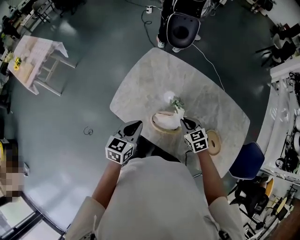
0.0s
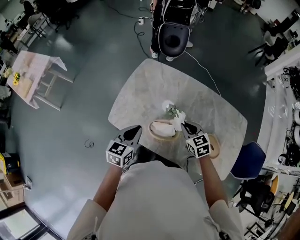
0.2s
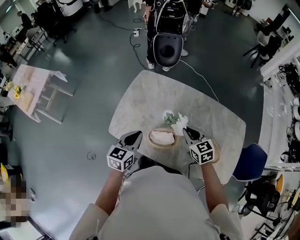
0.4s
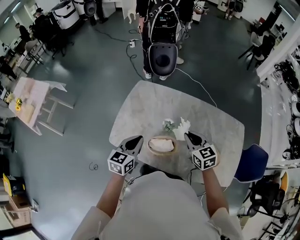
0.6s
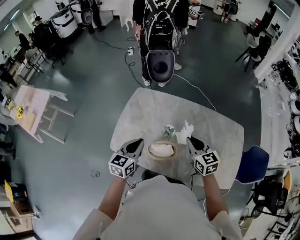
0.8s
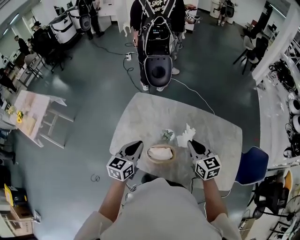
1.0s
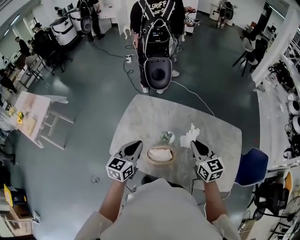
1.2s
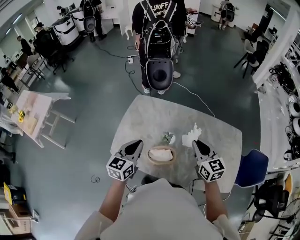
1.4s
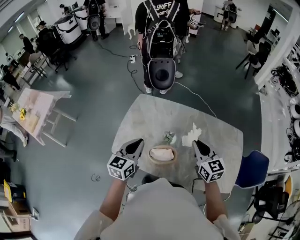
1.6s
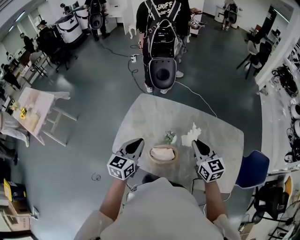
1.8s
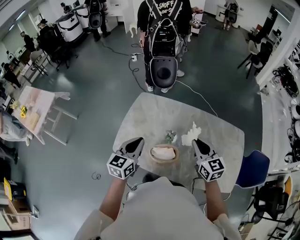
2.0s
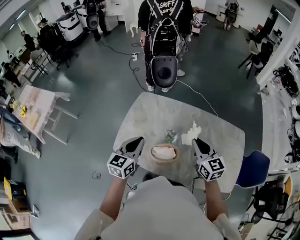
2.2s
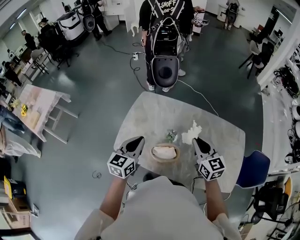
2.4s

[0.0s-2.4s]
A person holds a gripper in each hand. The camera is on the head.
0.0s to 1.2s: The left gripper shifts approximately 10 cm upward and to the right. The right gripper heads upward and to the right, covering approximately 25 cm, and changes its angle by some 40 degrees.
1.2s to 2.4s: The grippers move only a little.

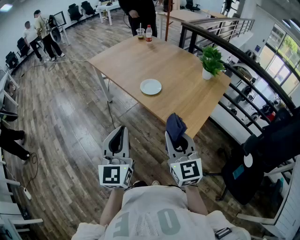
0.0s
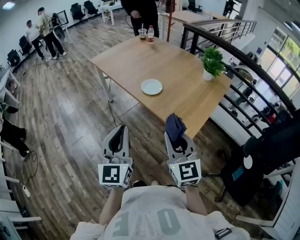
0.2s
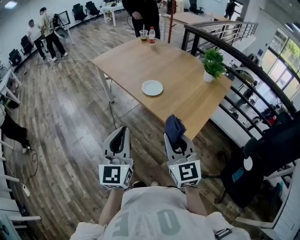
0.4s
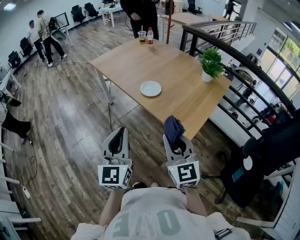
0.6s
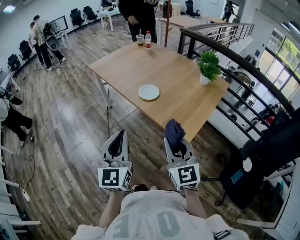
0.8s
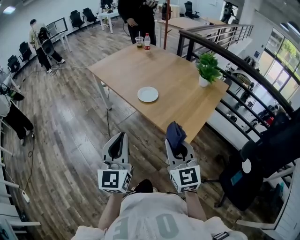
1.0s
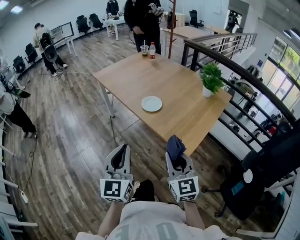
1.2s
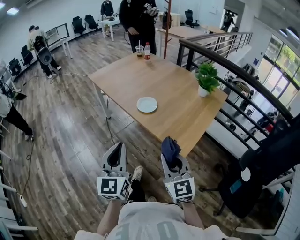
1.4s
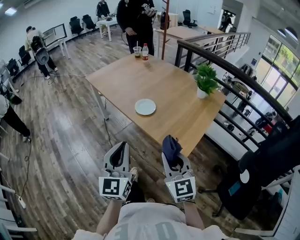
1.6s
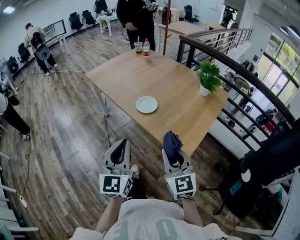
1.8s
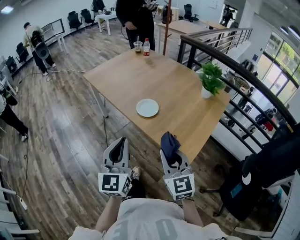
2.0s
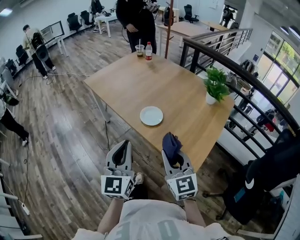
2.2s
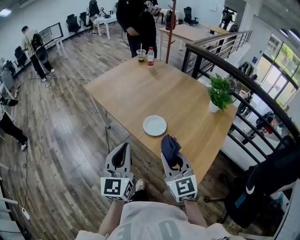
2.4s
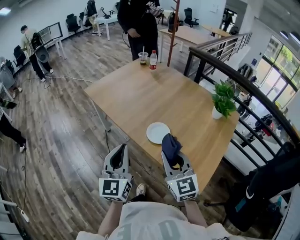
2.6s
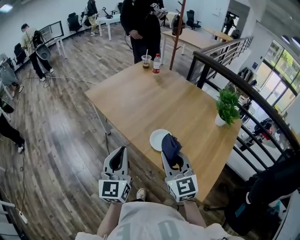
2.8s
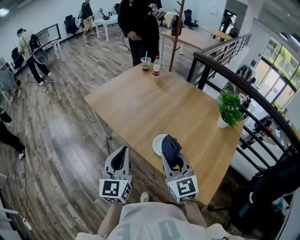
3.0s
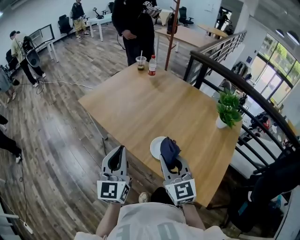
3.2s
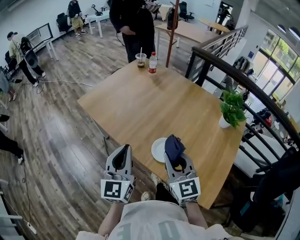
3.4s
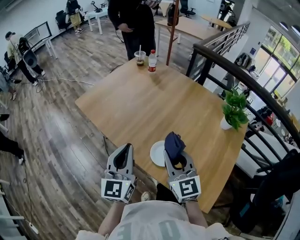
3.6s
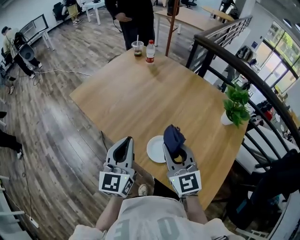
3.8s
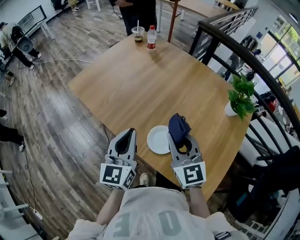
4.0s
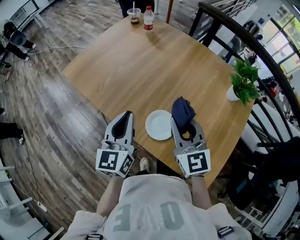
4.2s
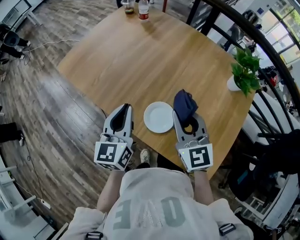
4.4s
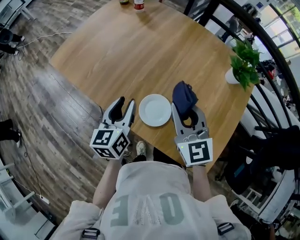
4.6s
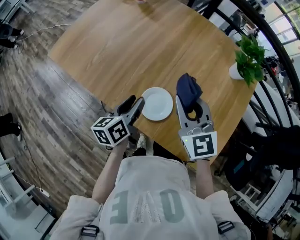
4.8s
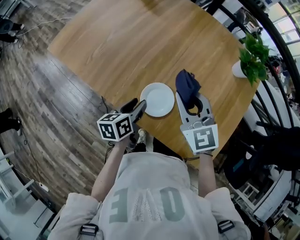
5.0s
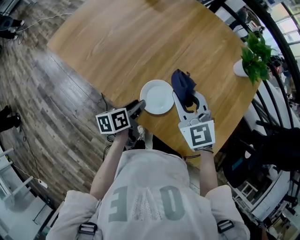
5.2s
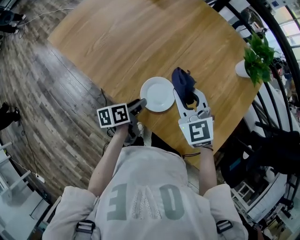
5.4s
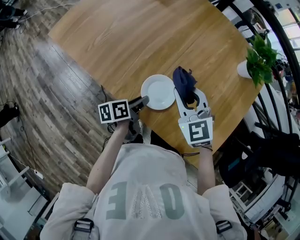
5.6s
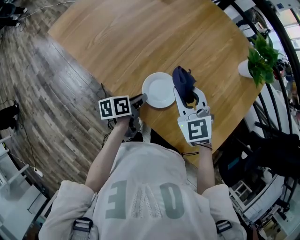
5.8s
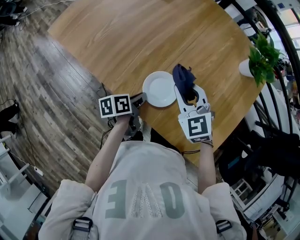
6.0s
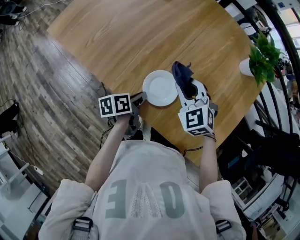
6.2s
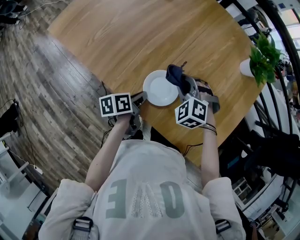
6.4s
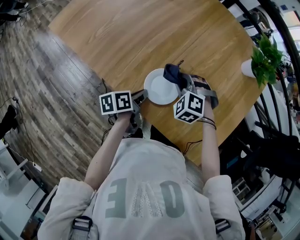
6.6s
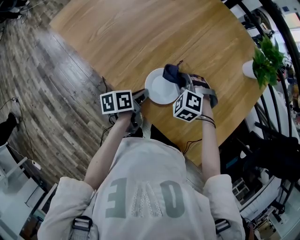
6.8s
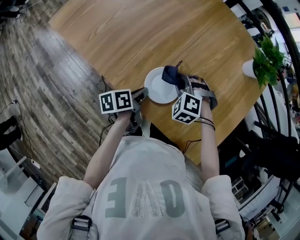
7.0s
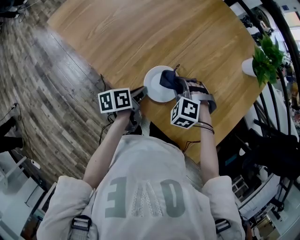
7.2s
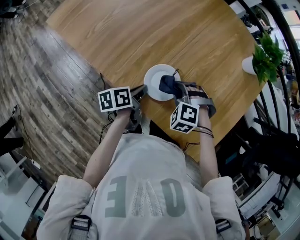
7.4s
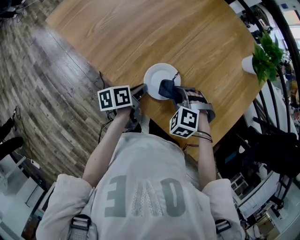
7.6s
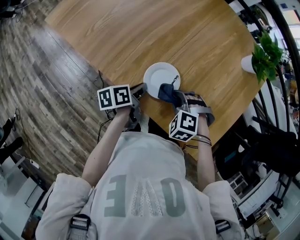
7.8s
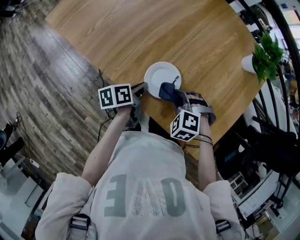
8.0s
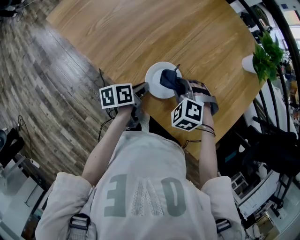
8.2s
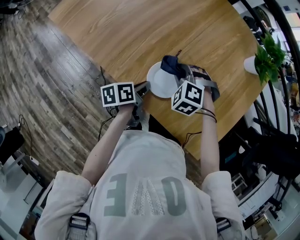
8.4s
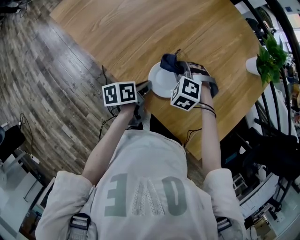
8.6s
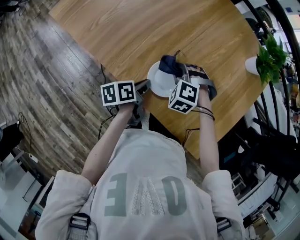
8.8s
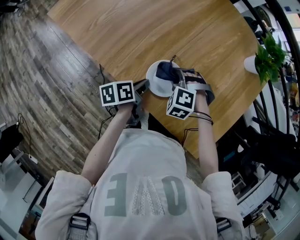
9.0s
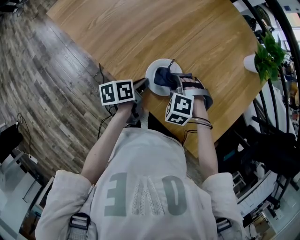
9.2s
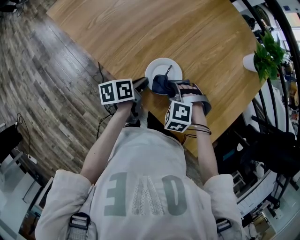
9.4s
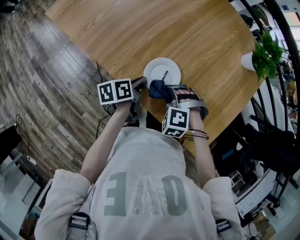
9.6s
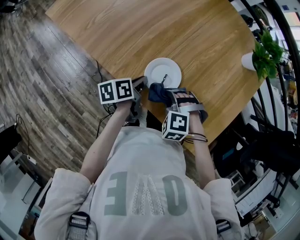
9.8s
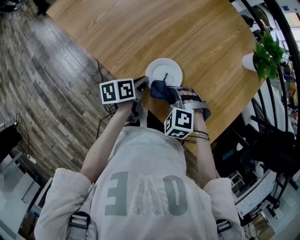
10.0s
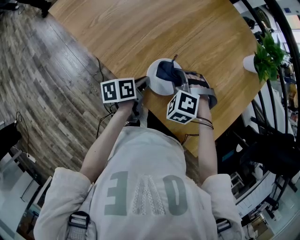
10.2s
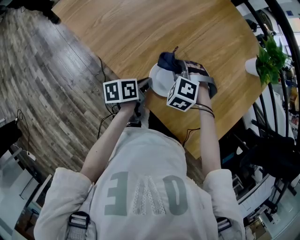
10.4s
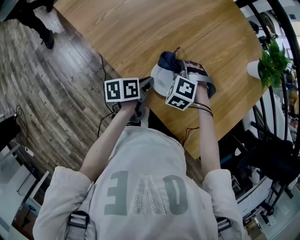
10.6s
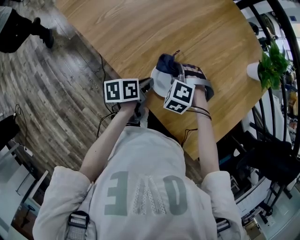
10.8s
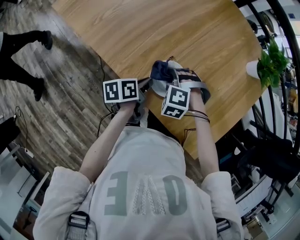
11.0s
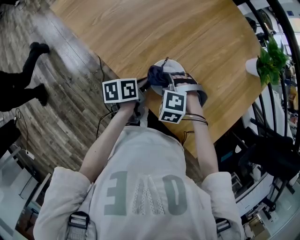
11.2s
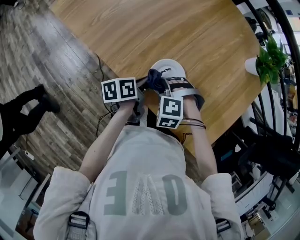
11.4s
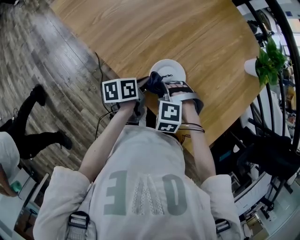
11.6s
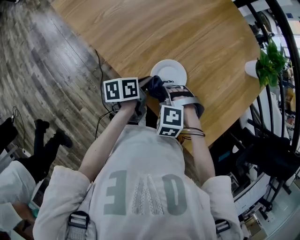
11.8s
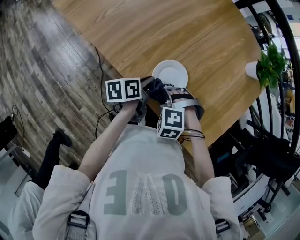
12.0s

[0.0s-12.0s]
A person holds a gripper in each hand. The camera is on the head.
0.0s to 1.6s: The grippers move only a little.
1.6s to 3.0s: Both grippers move forward, roughly 30 cm.
3.0s to 4.4s: The right gripper is displaced forward and to the right by approximately 15 cm. Meanwhile the left gripper travels forward, to the right and downward by some 15 cm.
4.4s to 6.0s: The right gripper heads downward, covering some 10 cm, and changes its angle by approximately 20 degrees, while the left gripper heads downward, covering roughly 25 cm, swivels roughly 60 degrees, and opens, then closes once more.
6.0s to 7.6s: The right gripper shifts about 15 cm downward and backward, and tips its fingers downward by approximately 40 degrees.
9.0s to 10.4s: The right gripper reaches roughly 10 cm backward, then returns.
10.4s to 12.0s: The right gripper shifts approximately 15 cm backward.

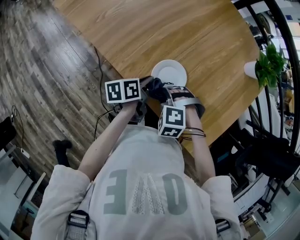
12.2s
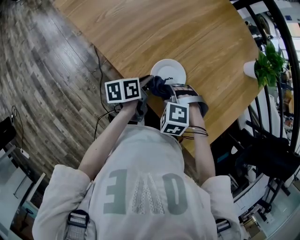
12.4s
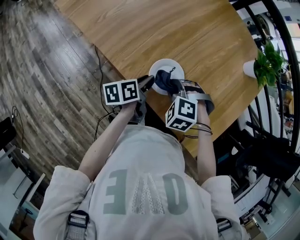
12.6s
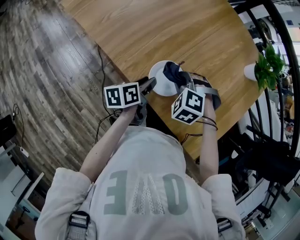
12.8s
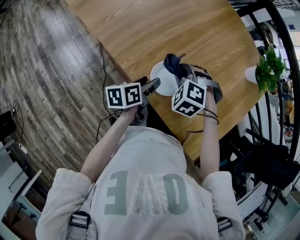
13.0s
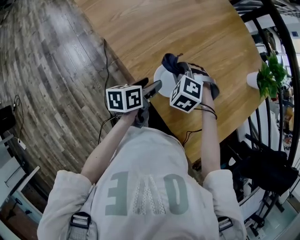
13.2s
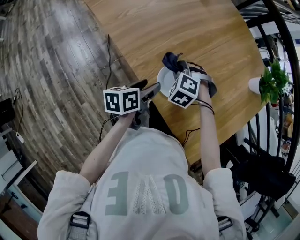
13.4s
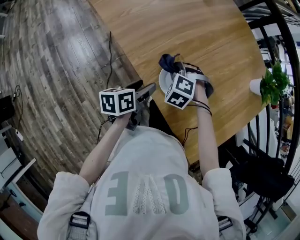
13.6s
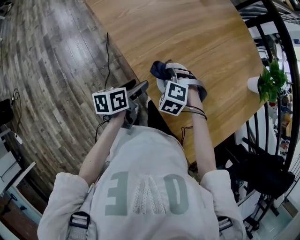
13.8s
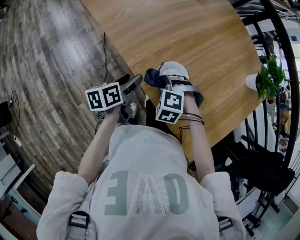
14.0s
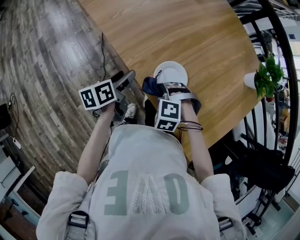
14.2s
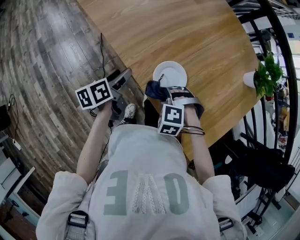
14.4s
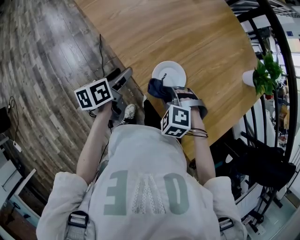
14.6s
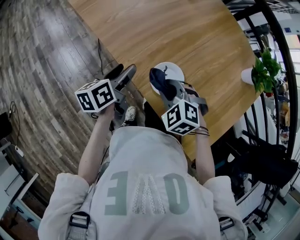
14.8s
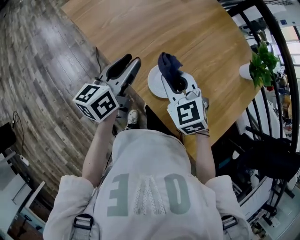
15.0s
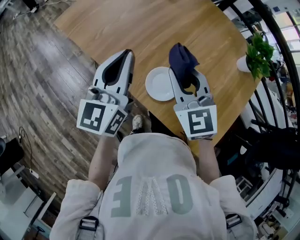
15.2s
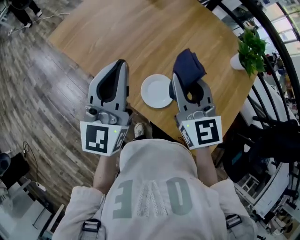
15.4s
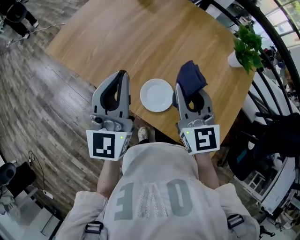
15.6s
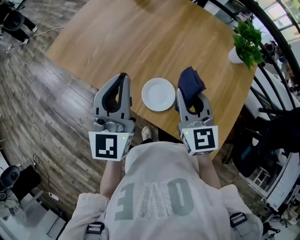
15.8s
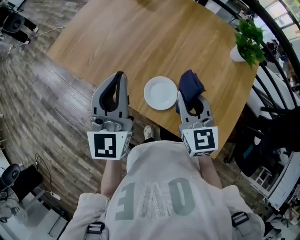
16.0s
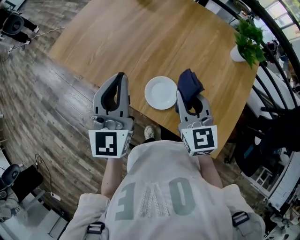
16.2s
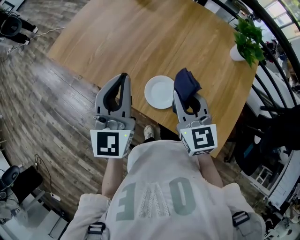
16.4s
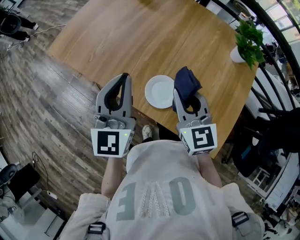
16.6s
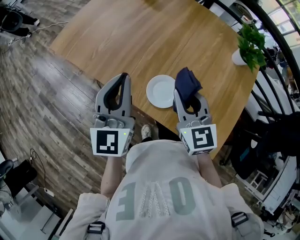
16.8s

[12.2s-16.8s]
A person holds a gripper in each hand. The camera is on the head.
12.2s to 13.8s: The right gripper heads forward, covering some 5 cm, while the left gripper shifts about 10 cm to the left and backward, and opens its fingers.
13.8s to 15.2s: Both grippers move upward, roughly 25 cm. The left gripper points its fingers approximately 40 degrees further upward, and closes. The right gripper points its fingers some 50 degrees further upward.
15.2s to 16.8s: The right gripper moves roughly 5 cm.

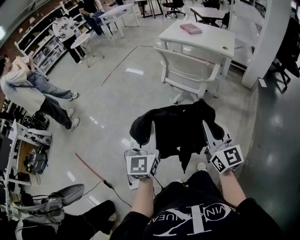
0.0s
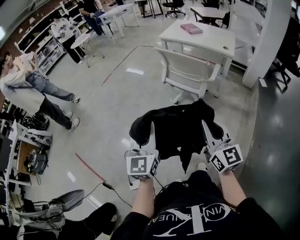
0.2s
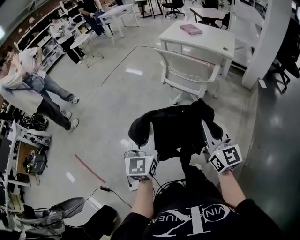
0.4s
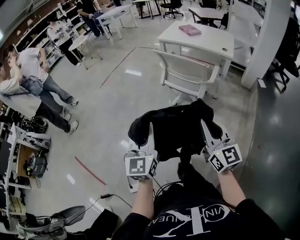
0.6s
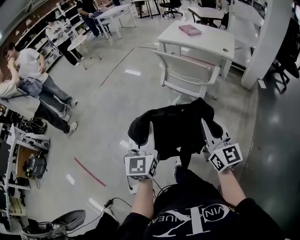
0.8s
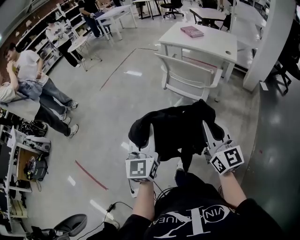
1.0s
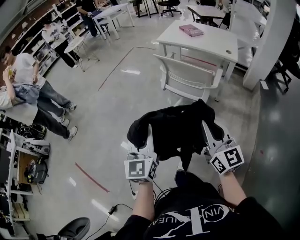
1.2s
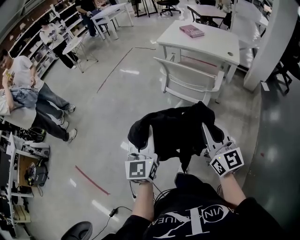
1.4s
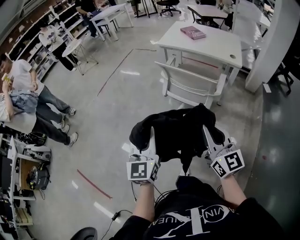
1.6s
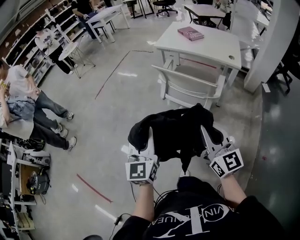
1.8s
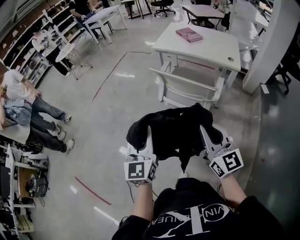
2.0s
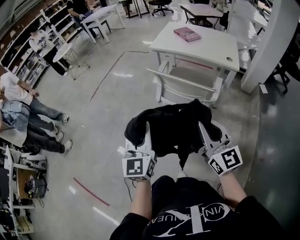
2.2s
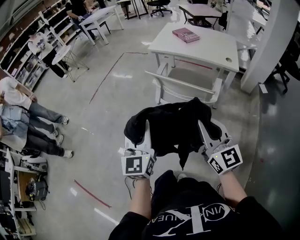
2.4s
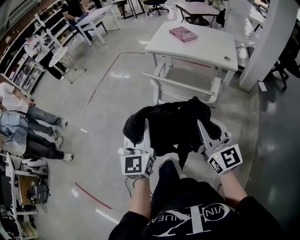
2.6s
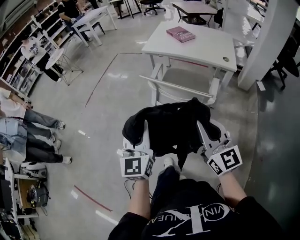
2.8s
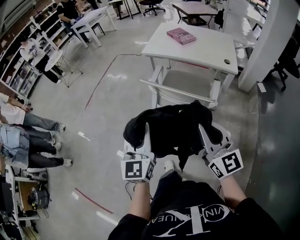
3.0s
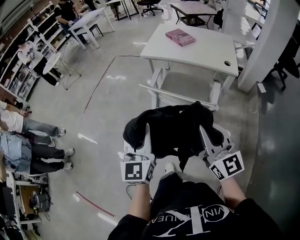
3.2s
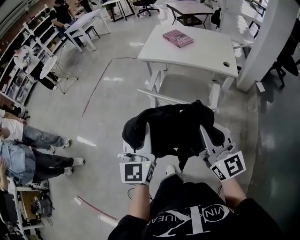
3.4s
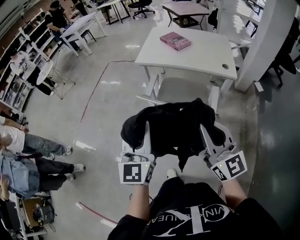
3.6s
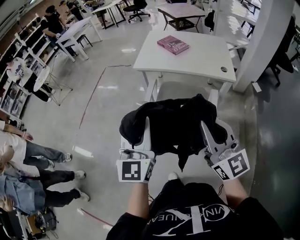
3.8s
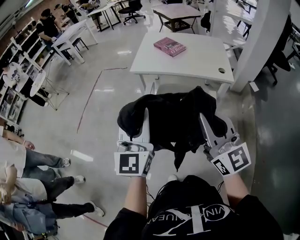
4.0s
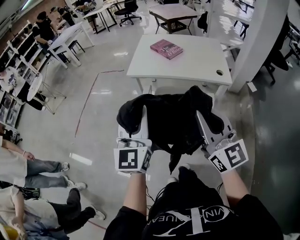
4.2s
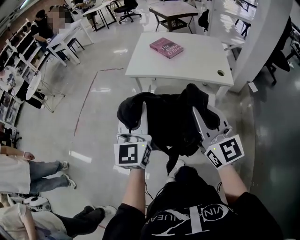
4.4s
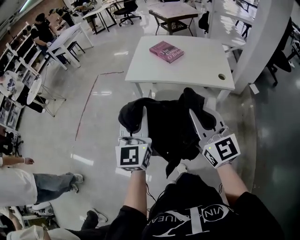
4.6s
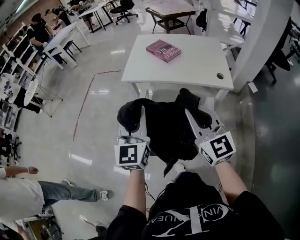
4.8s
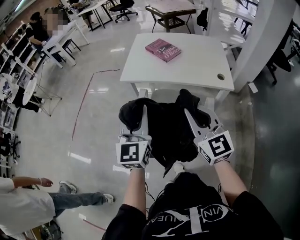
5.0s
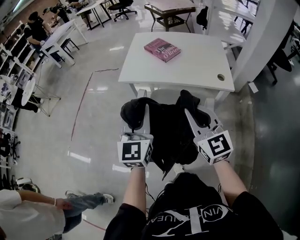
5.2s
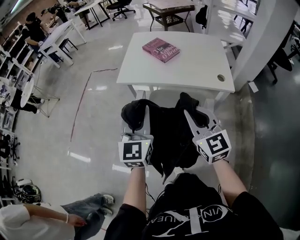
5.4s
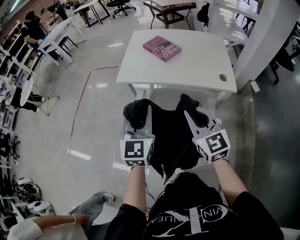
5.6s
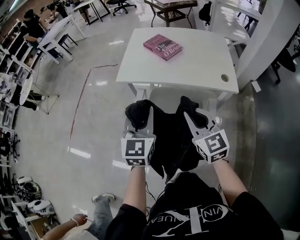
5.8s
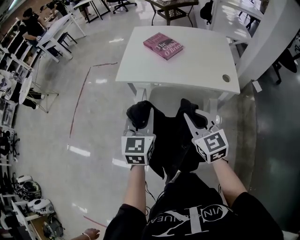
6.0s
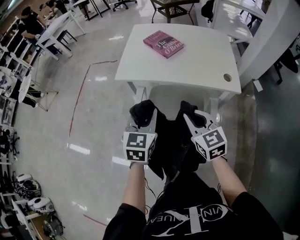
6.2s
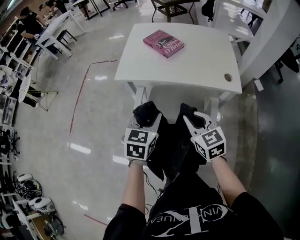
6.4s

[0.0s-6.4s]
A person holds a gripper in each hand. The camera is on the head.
0.0s to 1.6s: The grippers both shift forward by approximately 20 cm.
1.6s to 3.2s: Both grippers move forward, roughly 20 cm.
3.2s to 4.8s: The grippers both shift forward by approximately 25 cm.
4.8s to 6.4s: The left gripper moves downward, forward and to the right, about 20 cm, and points its fingers some 30 degrees further downward. Meanwhile the right gripper heads downward and forward, covering about 20 cm, and turns by some 30 degrees.
